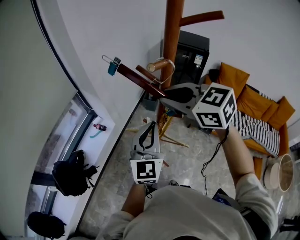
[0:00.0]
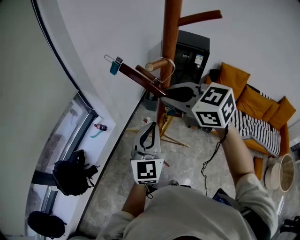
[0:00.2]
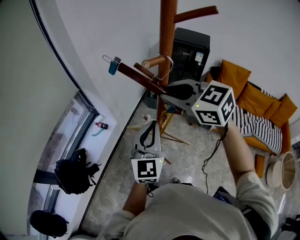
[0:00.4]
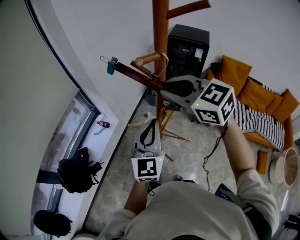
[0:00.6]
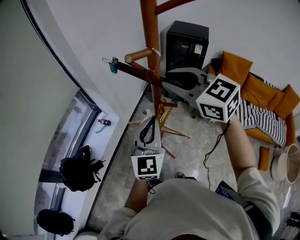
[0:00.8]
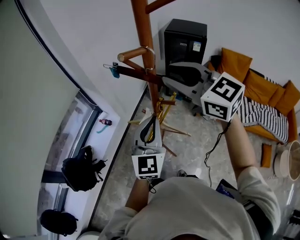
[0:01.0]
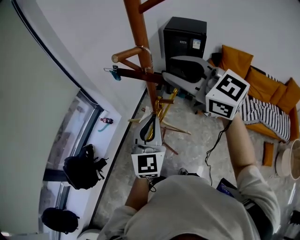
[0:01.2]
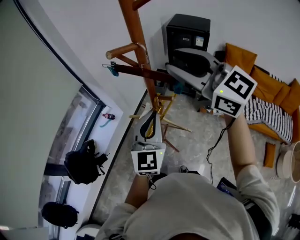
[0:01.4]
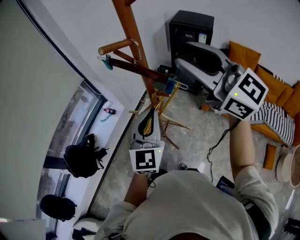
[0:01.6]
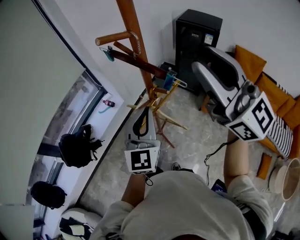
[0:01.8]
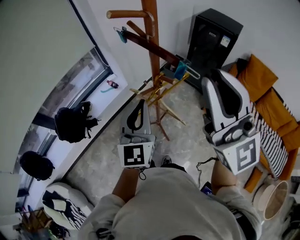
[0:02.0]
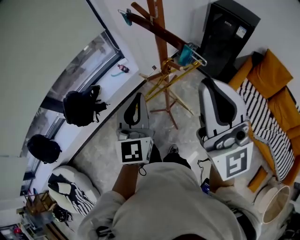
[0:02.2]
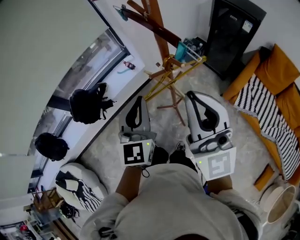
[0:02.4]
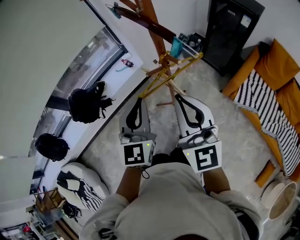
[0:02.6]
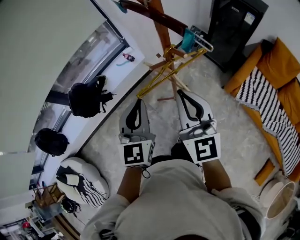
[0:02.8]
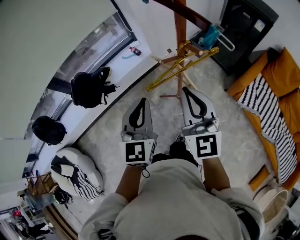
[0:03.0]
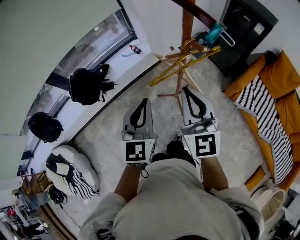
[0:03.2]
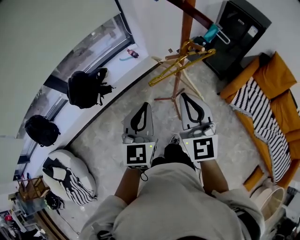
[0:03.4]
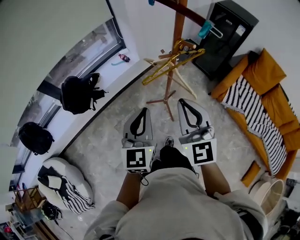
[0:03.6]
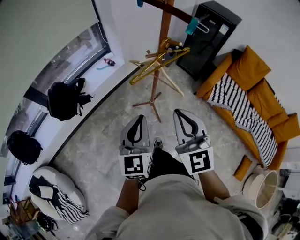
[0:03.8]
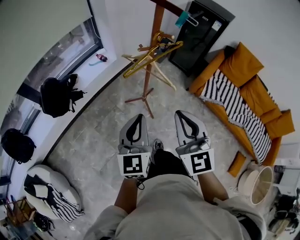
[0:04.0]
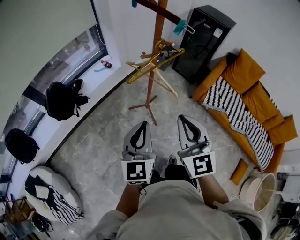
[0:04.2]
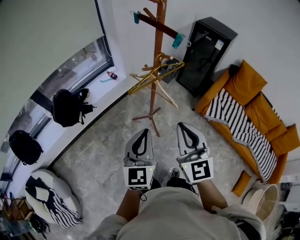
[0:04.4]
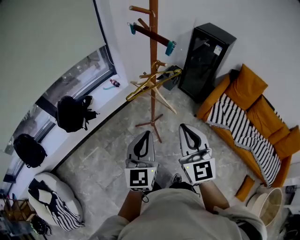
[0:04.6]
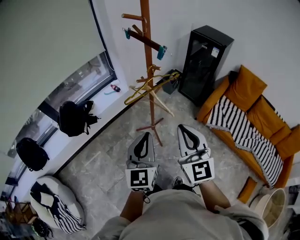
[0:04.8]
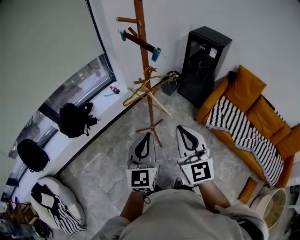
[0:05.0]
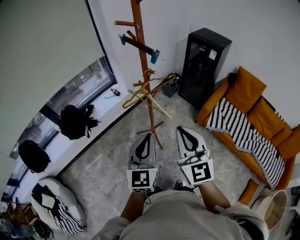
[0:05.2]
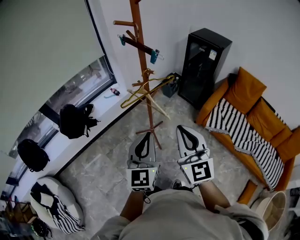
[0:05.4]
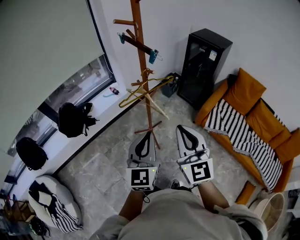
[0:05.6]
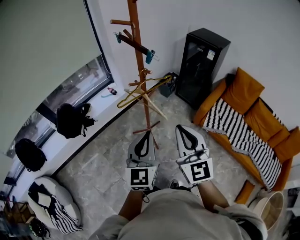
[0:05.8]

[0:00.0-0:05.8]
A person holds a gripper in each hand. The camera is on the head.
0:00.0 to 0:01.4: The right gripper travels to the right, upward and backward by about 15 cm, rotates approximately 30 degrees, and opens. The left gripper goes some 5 cm to the right.
0:01.4 to 0:02.8: The left gripper travels downward, to the left and backward by approximately 15 cm, and changes its angle by approximately 30 degrees; the right gripper is displaced downward and backward by approximately 25 cm, and closes its fingers.
0:02.8 to 0:04.4: Both grippers travel together backward, roughly 20 cm.
0:04.4 to 0:05.8: The grippers both shift to the right by roughly 10 cm.

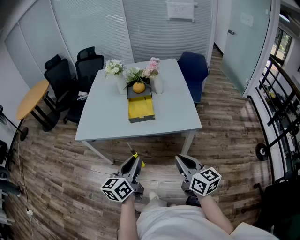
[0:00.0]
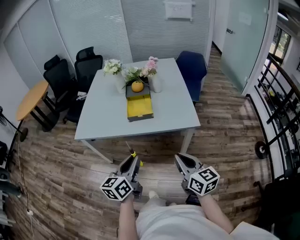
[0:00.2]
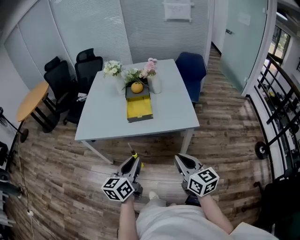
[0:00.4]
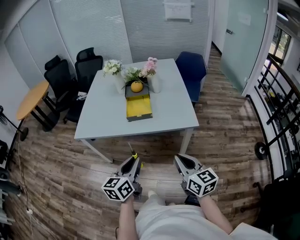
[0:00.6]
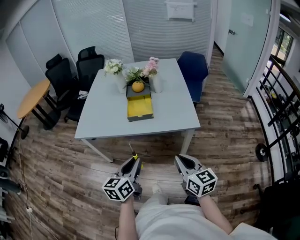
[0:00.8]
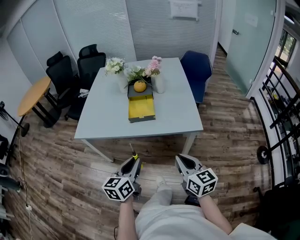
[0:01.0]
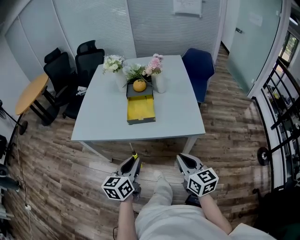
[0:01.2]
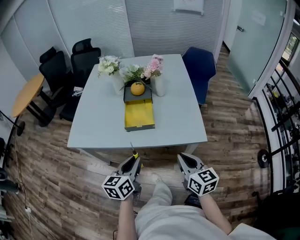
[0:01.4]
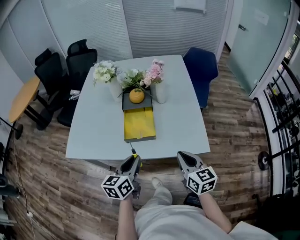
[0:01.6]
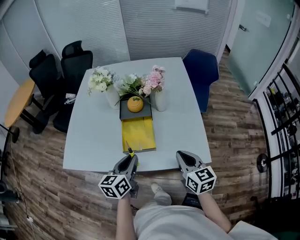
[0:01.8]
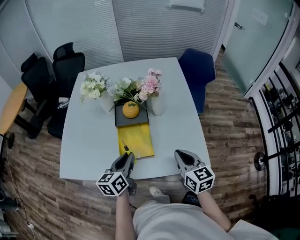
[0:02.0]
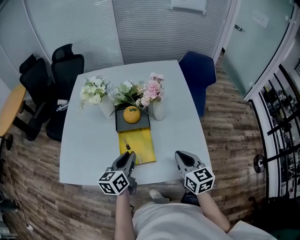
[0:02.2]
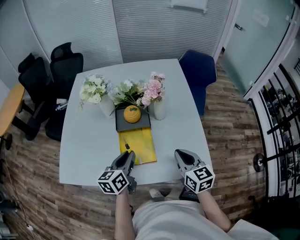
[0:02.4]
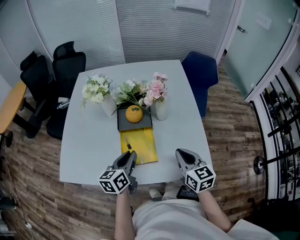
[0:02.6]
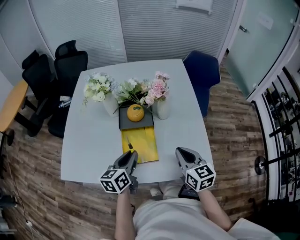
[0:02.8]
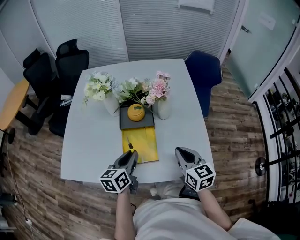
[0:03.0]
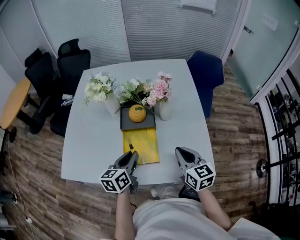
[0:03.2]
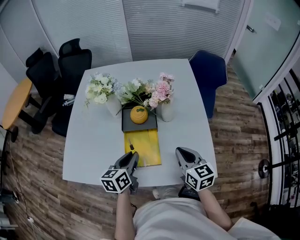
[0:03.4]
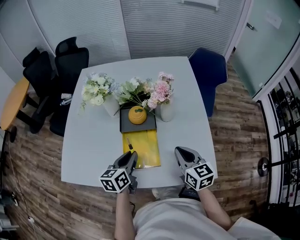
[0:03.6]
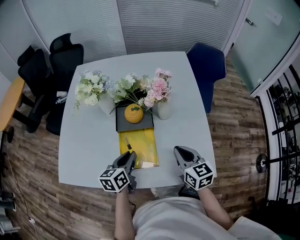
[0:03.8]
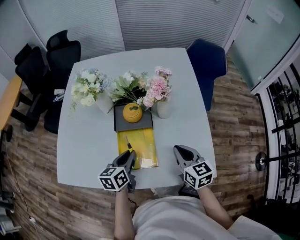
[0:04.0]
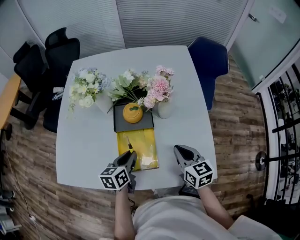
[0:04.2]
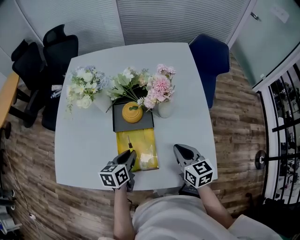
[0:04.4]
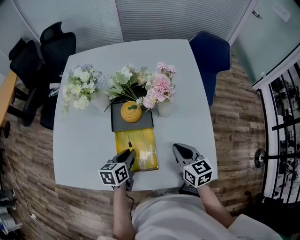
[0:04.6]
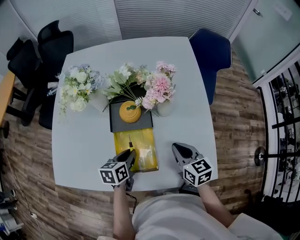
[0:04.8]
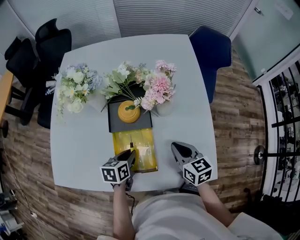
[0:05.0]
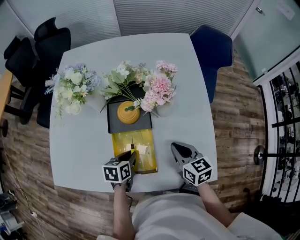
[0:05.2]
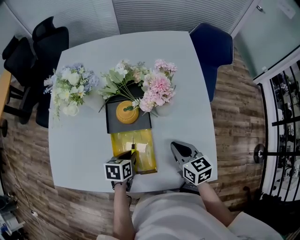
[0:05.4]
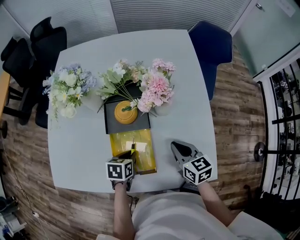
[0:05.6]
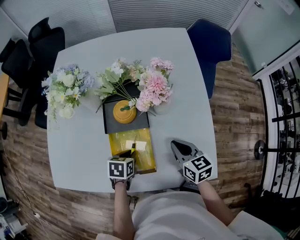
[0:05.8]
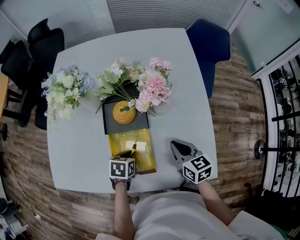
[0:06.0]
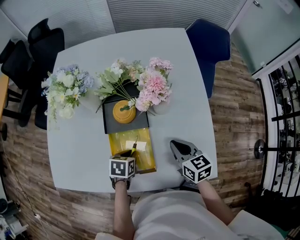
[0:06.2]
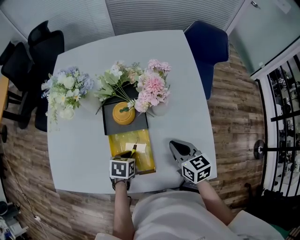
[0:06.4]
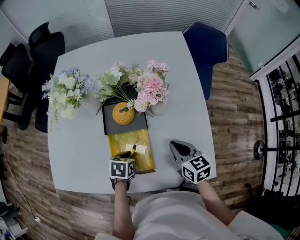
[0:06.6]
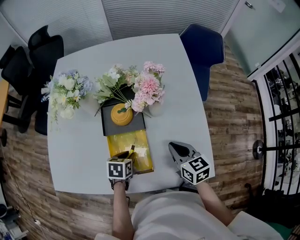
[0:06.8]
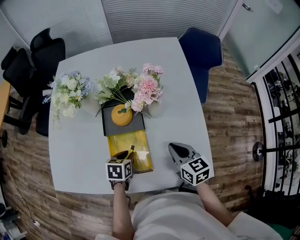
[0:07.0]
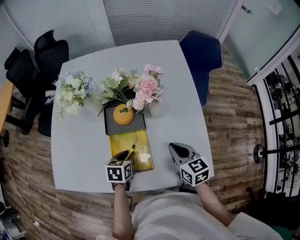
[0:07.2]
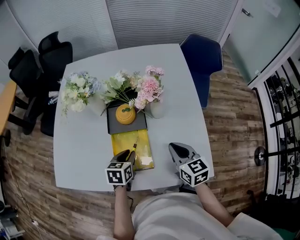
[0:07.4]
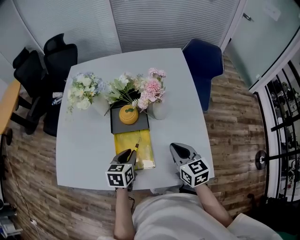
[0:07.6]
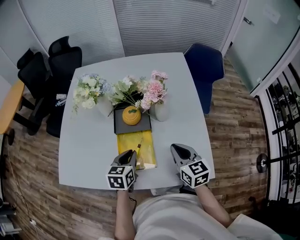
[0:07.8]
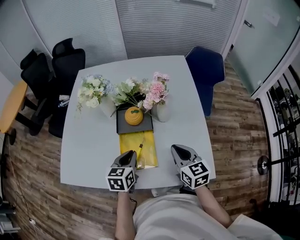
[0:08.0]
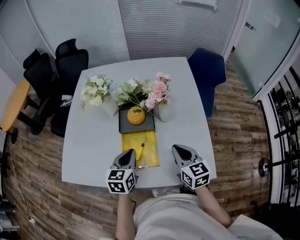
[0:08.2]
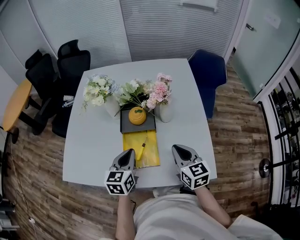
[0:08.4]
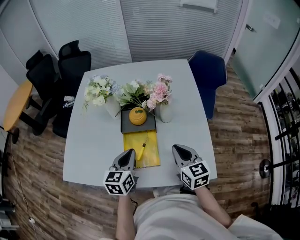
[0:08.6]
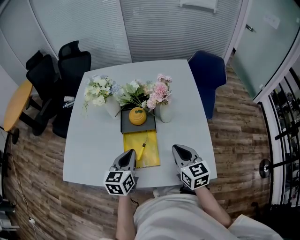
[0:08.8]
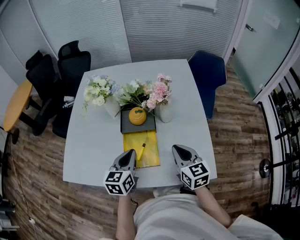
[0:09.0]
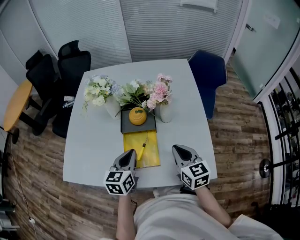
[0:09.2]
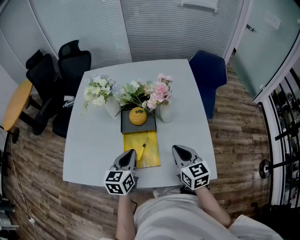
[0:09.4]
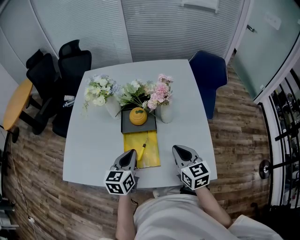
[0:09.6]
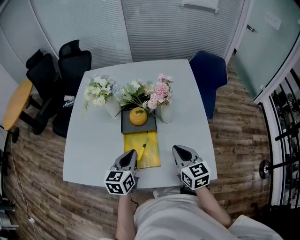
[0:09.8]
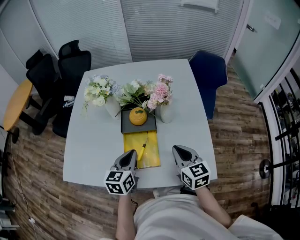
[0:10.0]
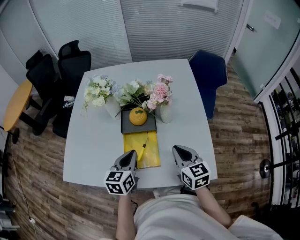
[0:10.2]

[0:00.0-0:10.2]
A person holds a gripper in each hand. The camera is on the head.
0:00.0 to 0:01.4: The left gripper travels forward and downward by roughly 15 cm. Meanwhile the right gripper travels forward by some 15 cm.
0:01.4 to 0:03.0: Both grippers travel together forward, about 25 cm.
0:03.0 to 0:04.4: The right gripper heads forward and downward, covering some 10 cm. The left gripper goes roughly 10 cm downward and forward.
0:04.4 to 0:05.8: The left gripper moves downward, roughly 10 cm, and swivels approximately 30 degrees, while the right gripper shifts by roughly 5 cm.
0:05.8 to 0:07.2: The right gripper shifts by roughly 5 cm.
0:07.2 to 0:08.8: The left gripper shifts roughly 15 cm upward, angles its fingers upward, by about 30 degrees, and closes. Meanwhile the right gripper moves upward, some 5 cm.
0:08.8 to 0:10.2: The two grippers keep their place.

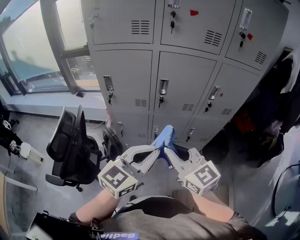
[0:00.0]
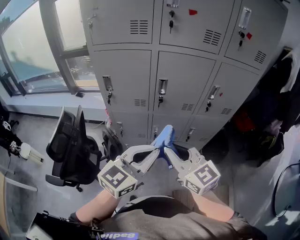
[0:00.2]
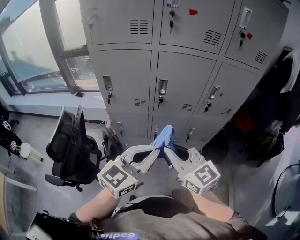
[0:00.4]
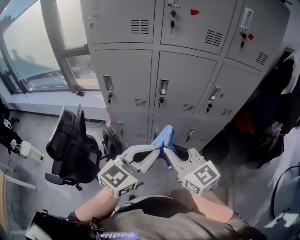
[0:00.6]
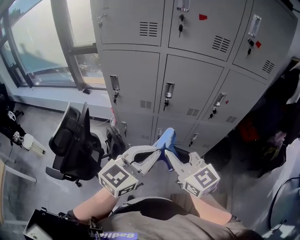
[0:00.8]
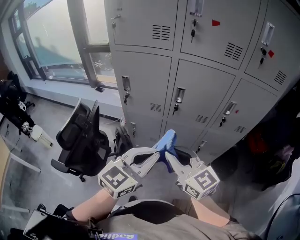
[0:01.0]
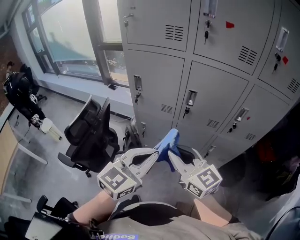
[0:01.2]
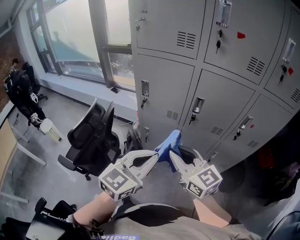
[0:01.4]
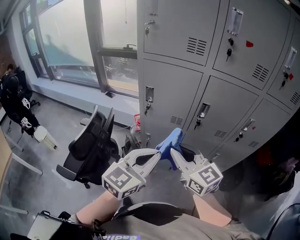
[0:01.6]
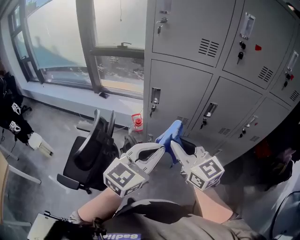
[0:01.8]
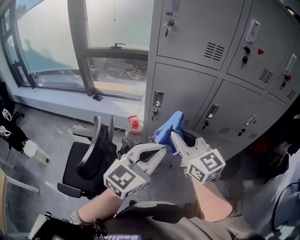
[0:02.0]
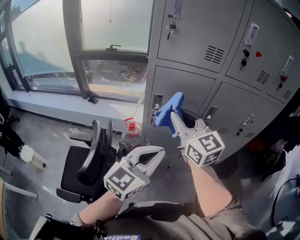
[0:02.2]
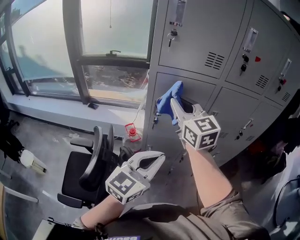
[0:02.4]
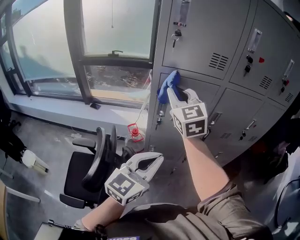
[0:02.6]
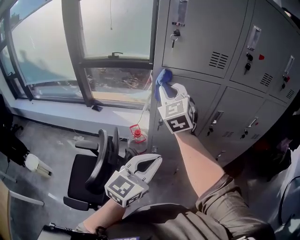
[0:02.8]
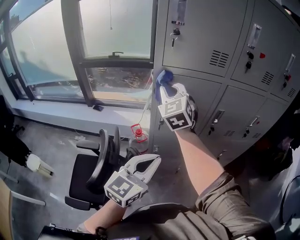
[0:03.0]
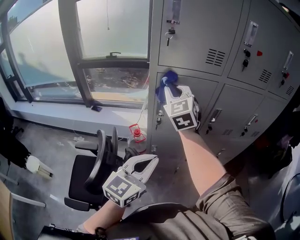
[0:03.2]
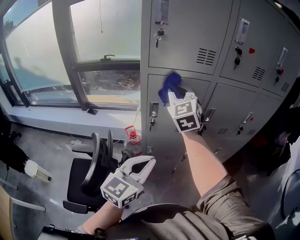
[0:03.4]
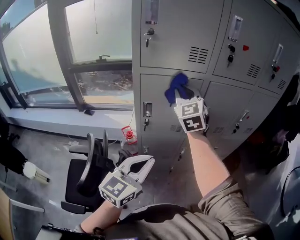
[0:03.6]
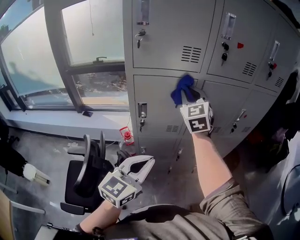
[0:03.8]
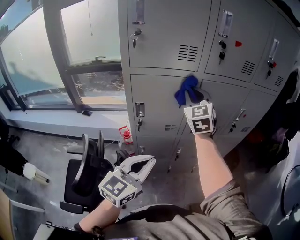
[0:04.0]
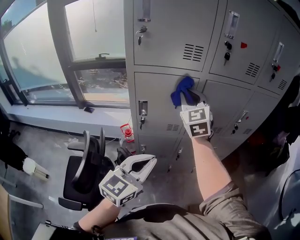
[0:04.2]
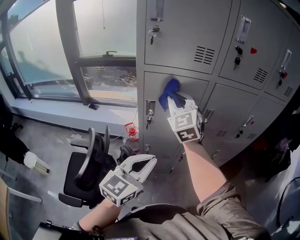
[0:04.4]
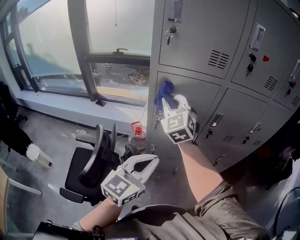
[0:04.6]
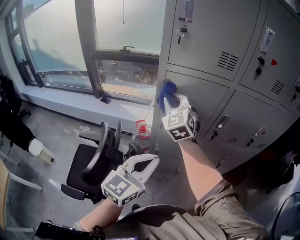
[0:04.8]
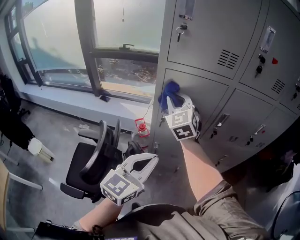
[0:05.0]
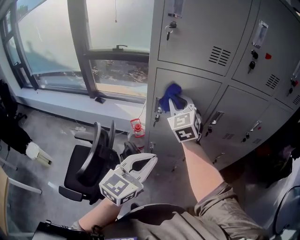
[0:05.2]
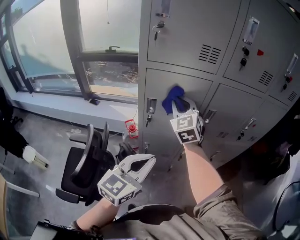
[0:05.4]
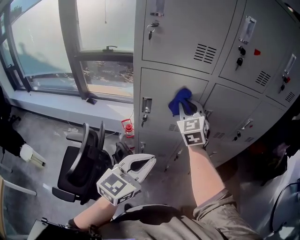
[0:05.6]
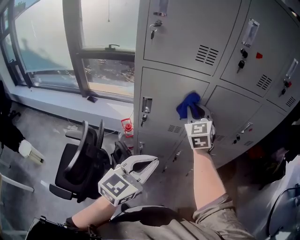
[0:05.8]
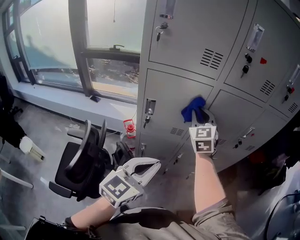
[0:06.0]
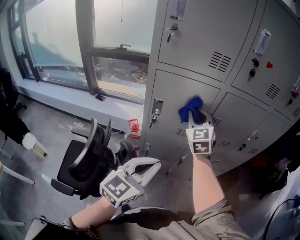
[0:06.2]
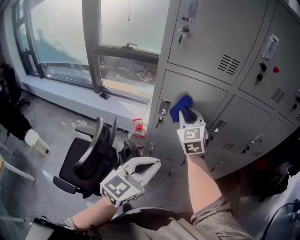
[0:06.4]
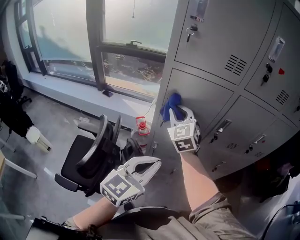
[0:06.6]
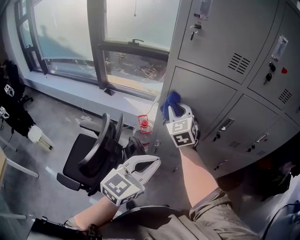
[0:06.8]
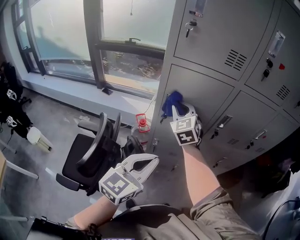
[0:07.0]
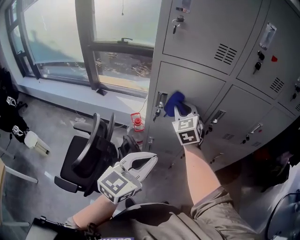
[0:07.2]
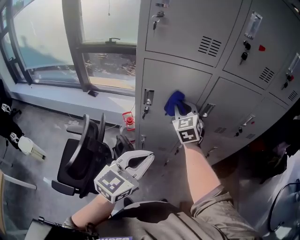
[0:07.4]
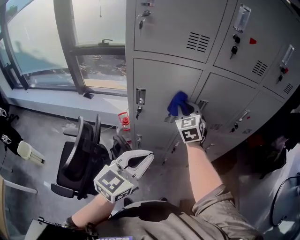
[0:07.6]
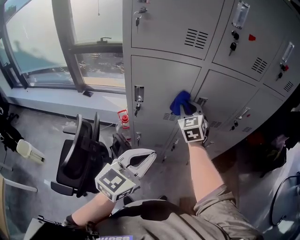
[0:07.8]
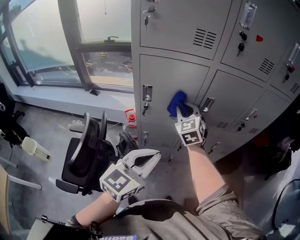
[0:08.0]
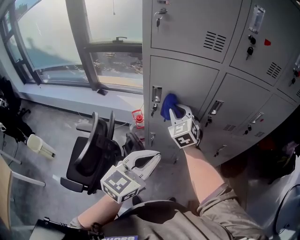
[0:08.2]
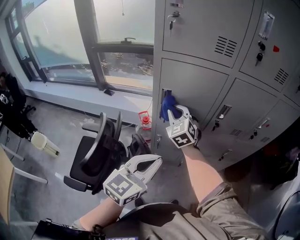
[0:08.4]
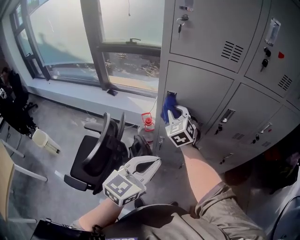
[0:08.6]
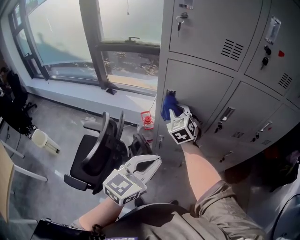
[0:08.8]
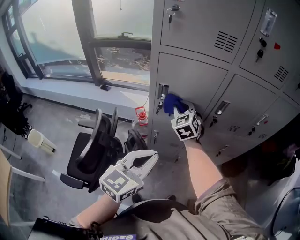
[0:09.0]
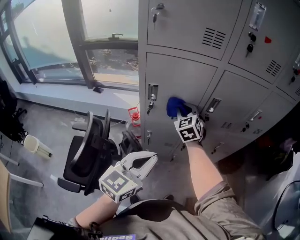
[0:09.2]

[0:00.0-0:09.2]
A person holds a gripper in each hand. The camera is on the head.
0:00.0 to 0:01.6: The two grippers go some 15 cm to the left and forward.
0:01.6 to 0:03.0: The left gripper travels to the left by approximately 15 cm. The right gripper goes some 35 cm forward, to the left and upward, and rotates about 50 degrees.
0:03.0 to 0:04.6: The right gripper travels to the right and back again, approximately 20 cm each way.
0:04.6 to 0:06.2: The right gripper goes roughly 15 cm to the right.
0:06.2 to 0:07.6: The right gripper is displaced downward by about 5 cm, and goes to the left and returns, some 15 cm each way.
0:07.6 to 0:09.2: The right gripper moves downward, about 5 cm, and travels to the left and back again, roughly 15 cm each way.
